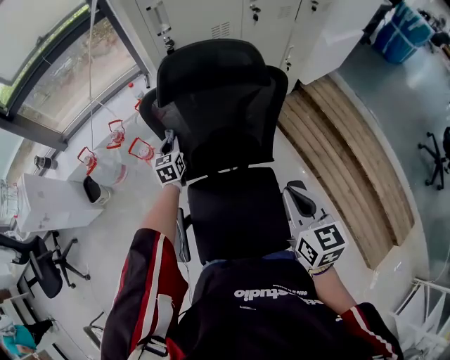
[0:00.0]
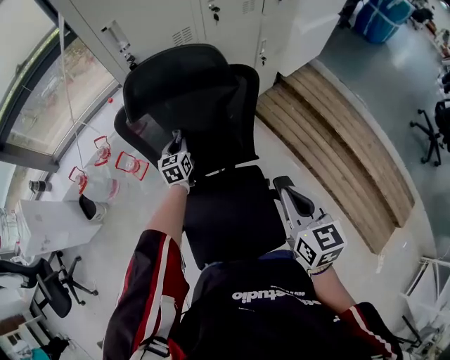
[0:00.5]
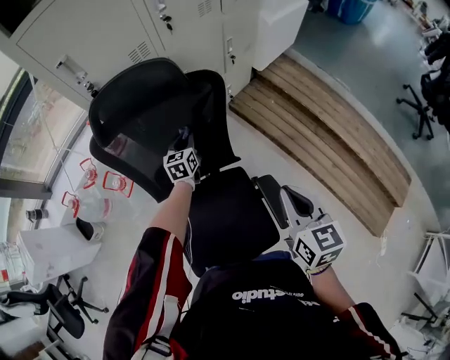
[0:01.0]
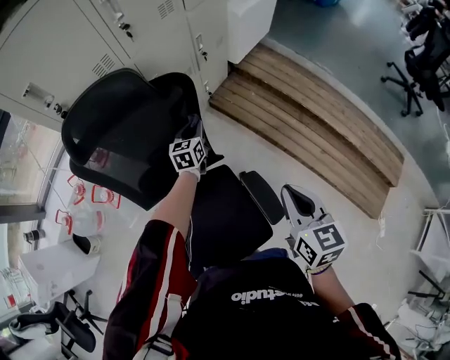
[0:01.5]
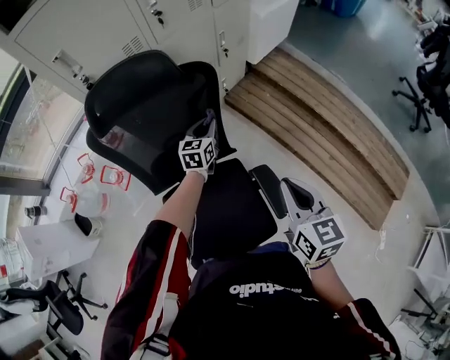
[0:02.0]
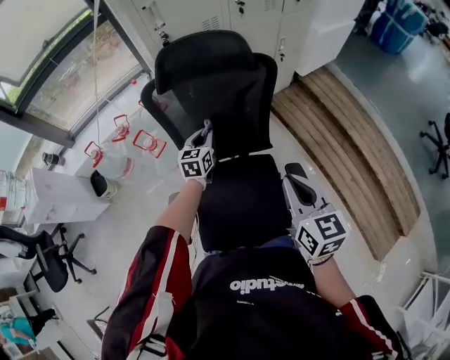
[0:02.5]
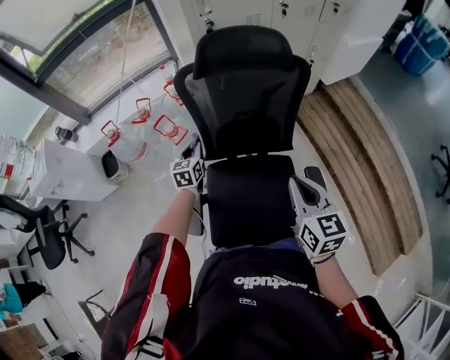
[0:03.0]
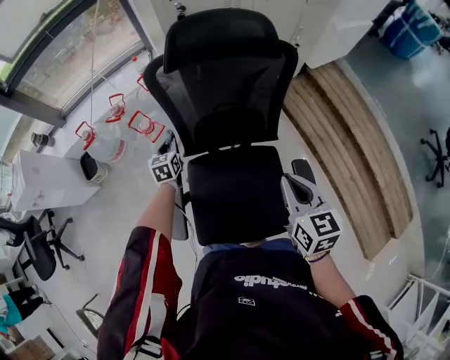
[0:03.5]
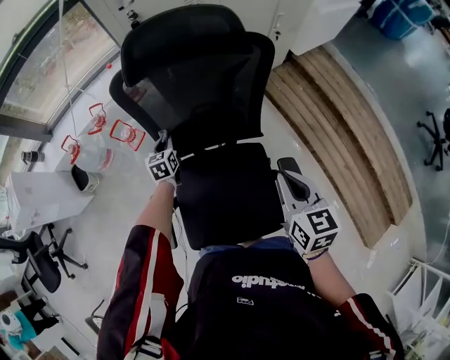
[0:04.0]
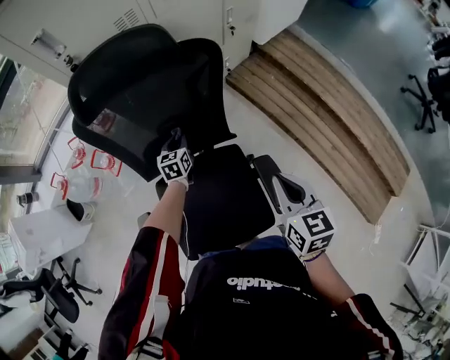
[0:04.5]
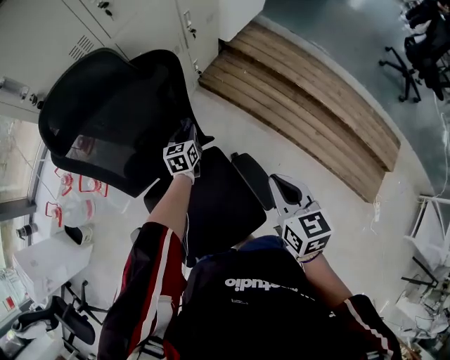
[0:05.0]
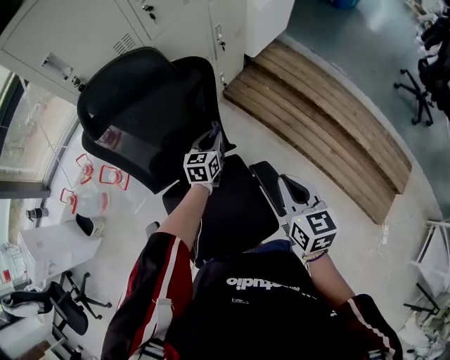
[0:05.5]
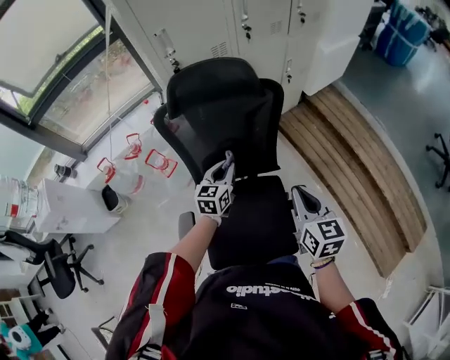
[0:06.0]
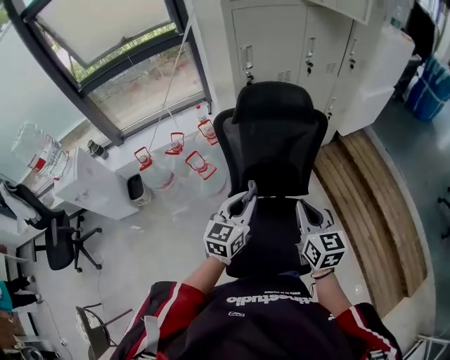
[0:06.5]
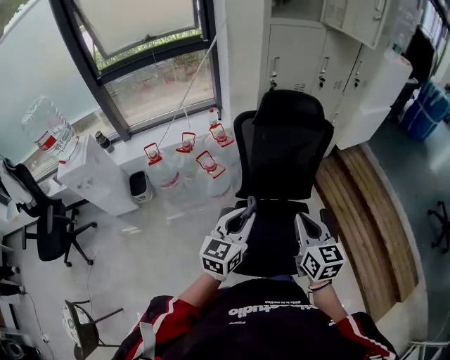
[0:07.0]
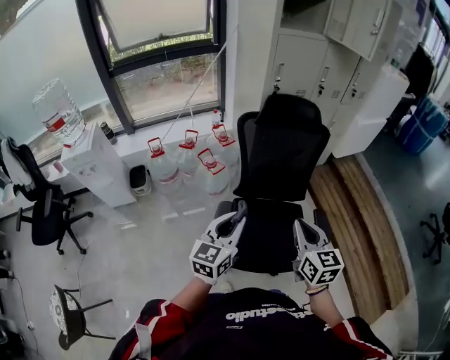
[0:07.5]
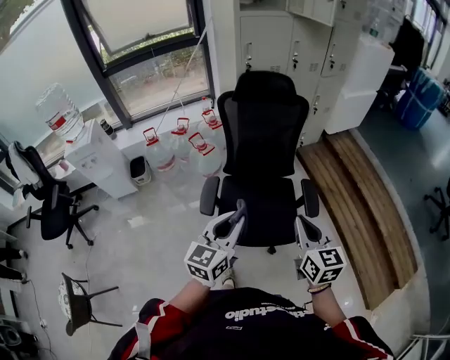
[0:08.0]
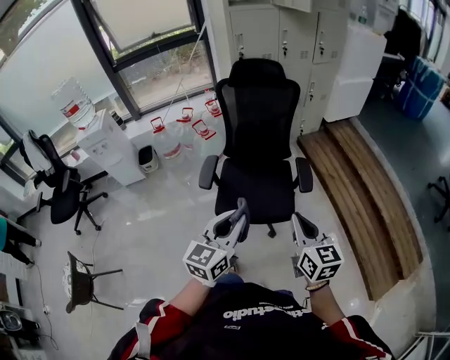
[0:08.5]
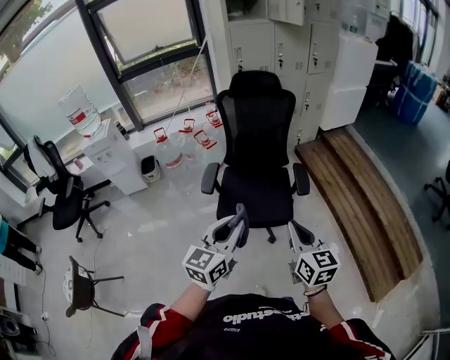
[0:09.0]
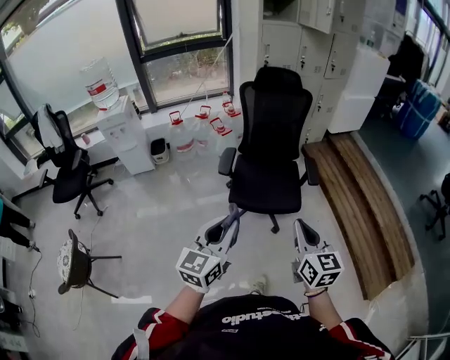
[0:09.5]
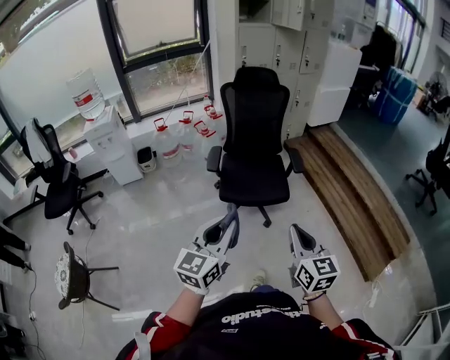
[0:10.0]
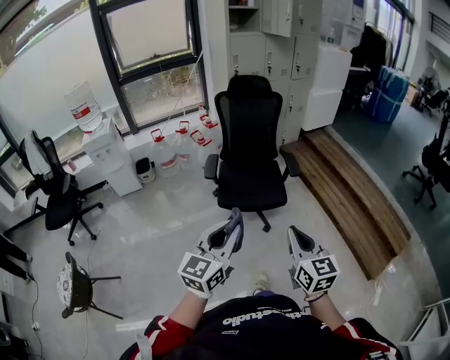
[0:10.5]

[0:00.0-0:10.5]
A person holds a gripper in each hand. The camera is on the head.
0:00.0 to 0:02.0: The right gripper moves some 15 cm. Meanwhile the left gripper moves about 40 cm, and rotates some 30 degrees.
0:02.0 to 0:04.0: The right gripper ends up about 15 cm from where it was; the left gripper moves some 40 cm, and swivels about 30 degrees.
0:04.0 to 0:06.5: The right gripper goes roughly 20 cm upward, to the left and backward, while the left gripper moves upward and backward, approximately 40 cm, travels to the right and back again, some 35 cm each way, and swivels some 30 degrees.
0:06.5 to 0:08.5: The two grippers travel together, backward, about 50 cm.
0:08.5 to 0:10.5: The two grippers go about 35 cm backward.

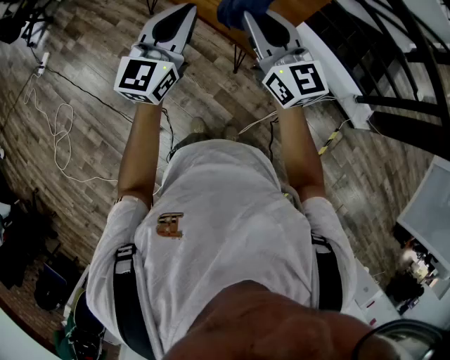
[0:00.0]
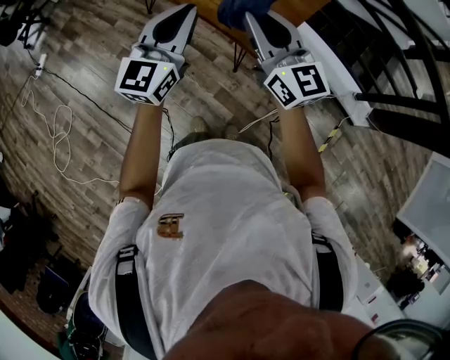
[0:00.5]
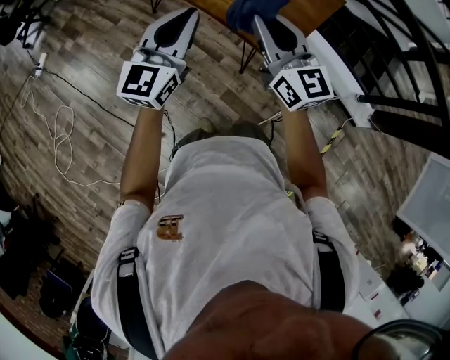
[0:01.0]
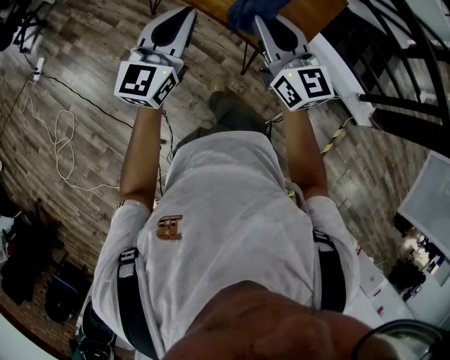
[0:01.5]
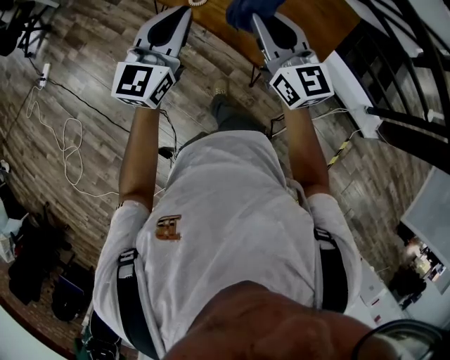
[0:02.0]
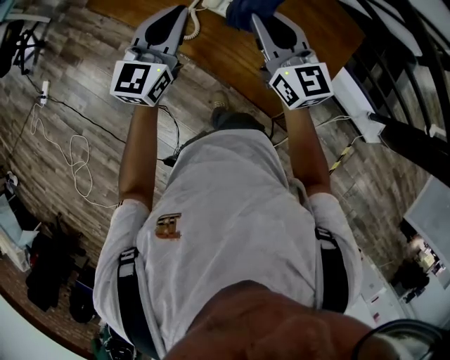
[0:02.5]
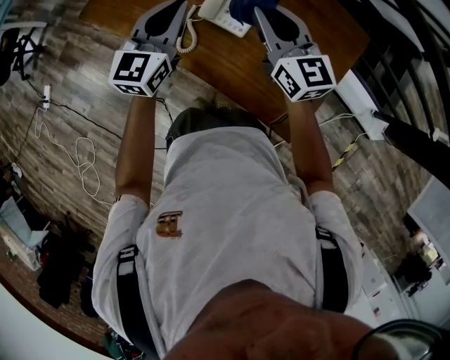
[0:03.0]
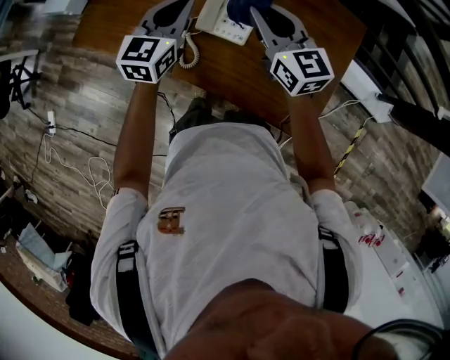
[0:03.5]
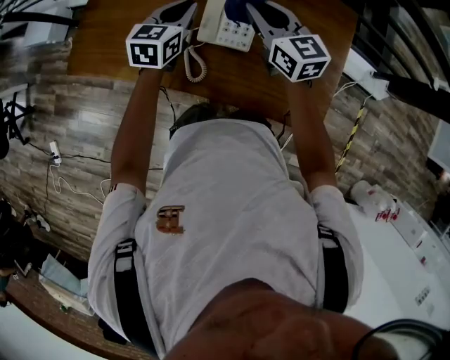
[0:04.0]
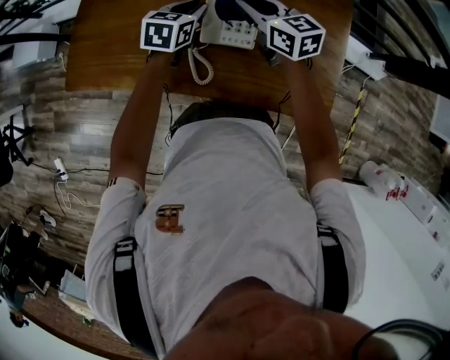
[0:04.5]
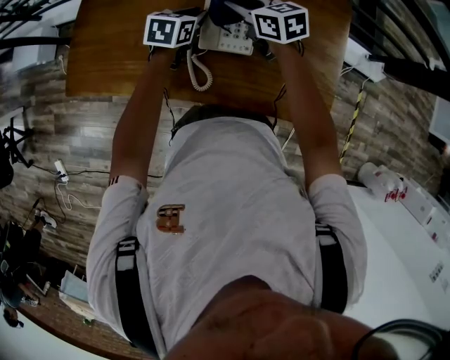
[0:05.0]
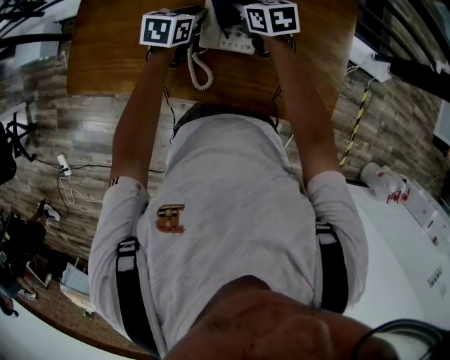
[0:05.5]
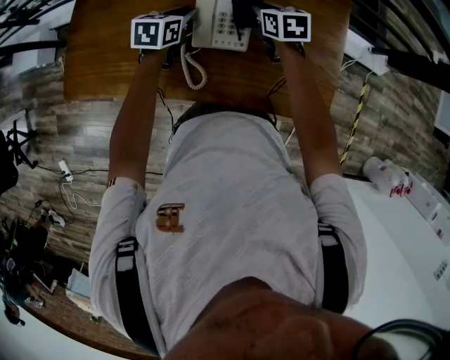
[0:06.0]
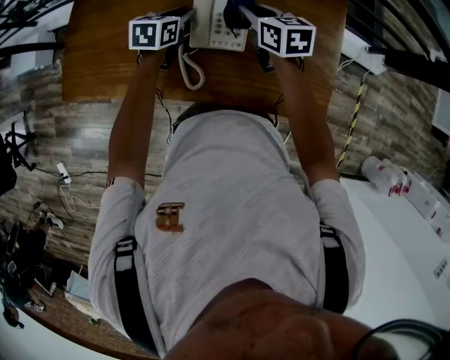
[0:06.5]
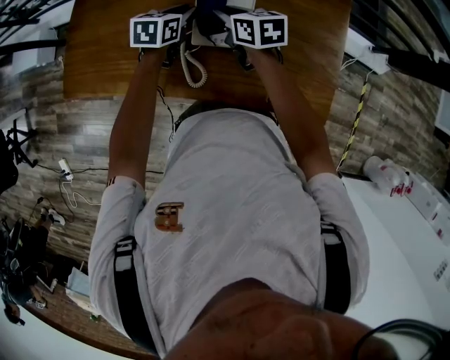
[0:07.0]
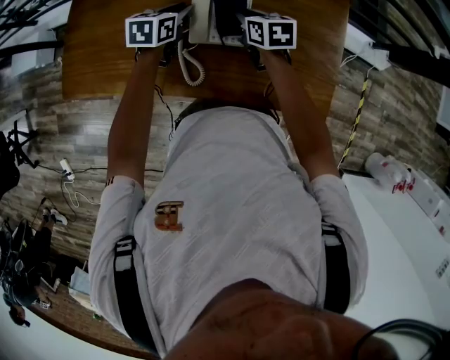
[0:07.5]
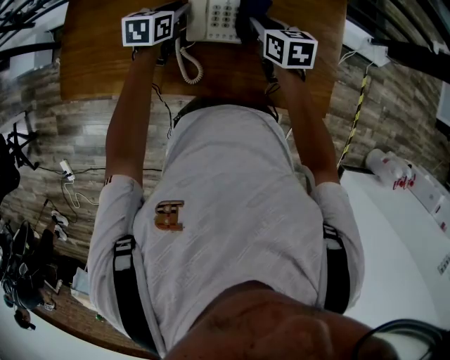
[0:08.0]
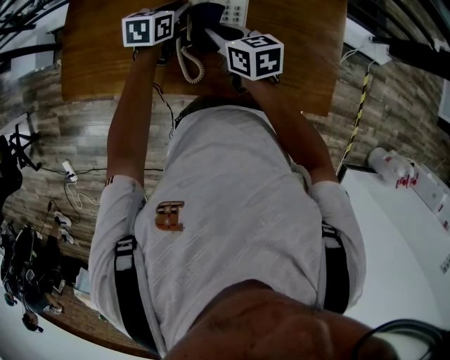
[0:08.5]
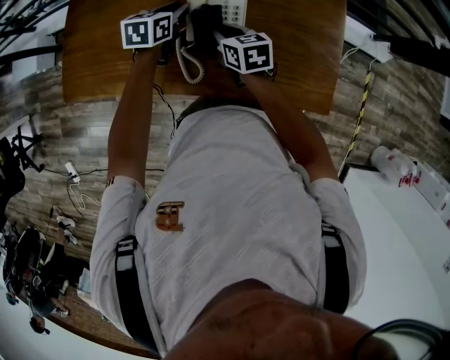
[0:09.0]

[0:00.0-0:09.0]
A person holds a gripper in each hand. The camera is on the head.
0:00.0 to 0:02.0: Both grippers travel together forward and to the left, approximately 25 cm.
0:02.0 to 0:04.5: The pair of grippers is taken some 50 cm. The left gripper tilts its fingers some 40 degrees downward. The right gripper rotates roughly 30 degrees.
0:04.5 to 0:07.0: The right gripper moves downward, approximately 10 cm, travels to the right and back again, about 10 cm each way, and changes its angle by approximately 20 degrees.
0:07.0 to 0:09.0: The right gripper travels backward by some 5 cm, and moves approximately 10 cm to the right and comes back.

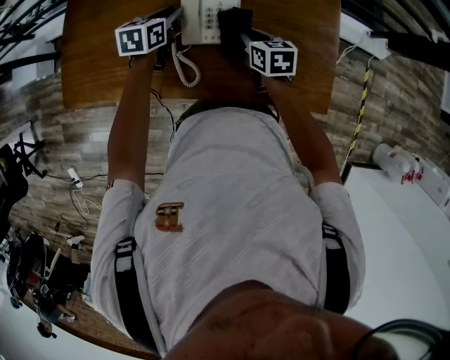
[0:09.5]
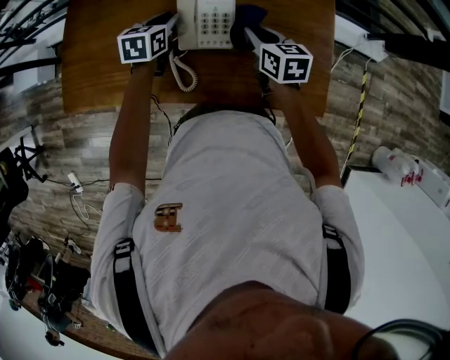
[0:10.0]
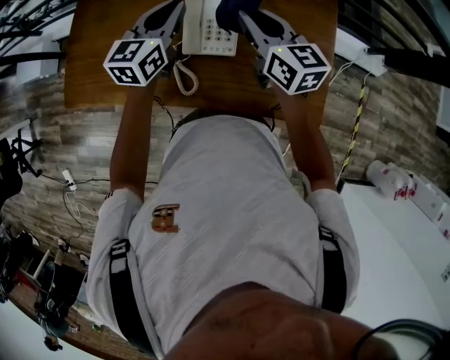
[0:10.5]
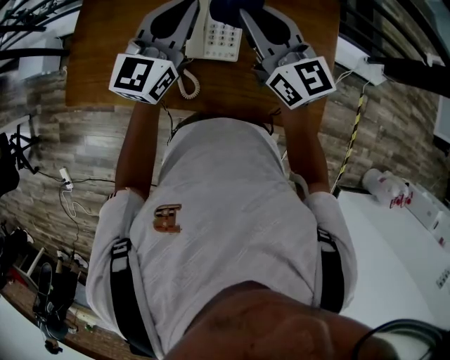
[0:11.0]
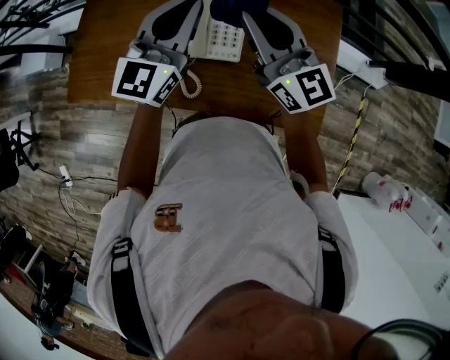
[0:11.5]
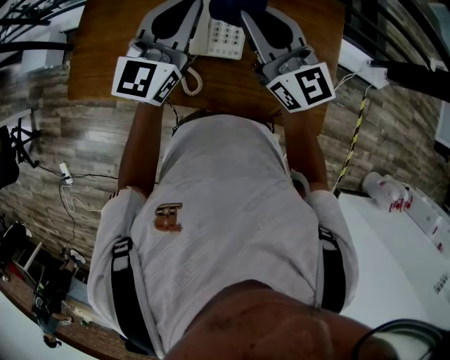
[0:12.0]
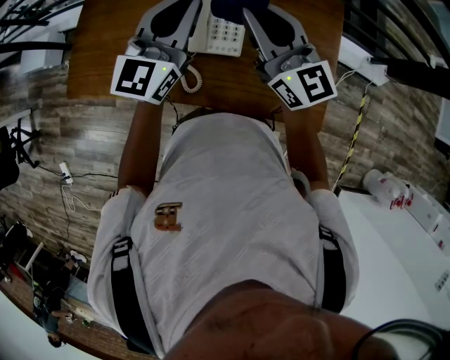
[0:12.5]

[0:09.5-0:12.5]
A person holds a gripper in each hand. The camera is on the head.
0:09.5 to 0:11.0: The two grippers go about 25 cm upward. The right gripper tips its fingers upward by approximately 50 degrees. The left gripper angles its fingers upward, by some 40 degrees.
0:11.0 to 0:12.5: The grippers move only a little.

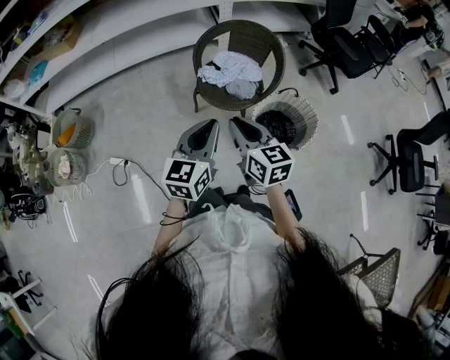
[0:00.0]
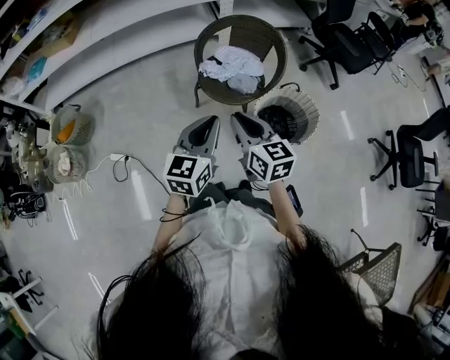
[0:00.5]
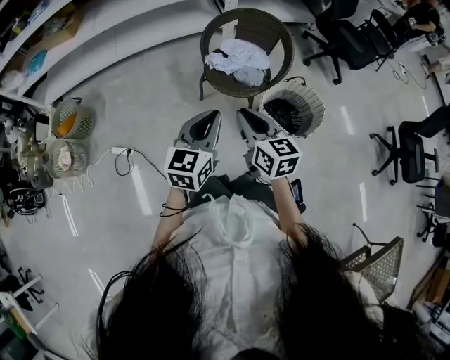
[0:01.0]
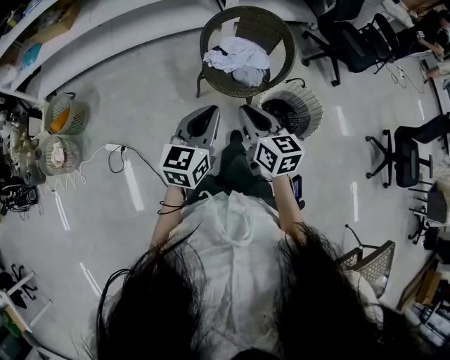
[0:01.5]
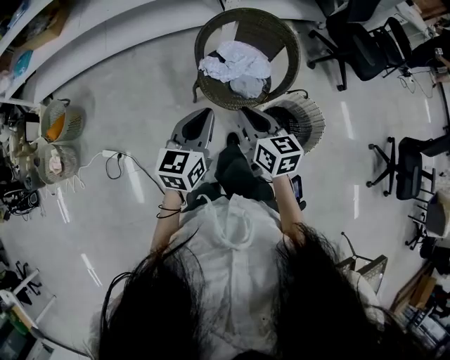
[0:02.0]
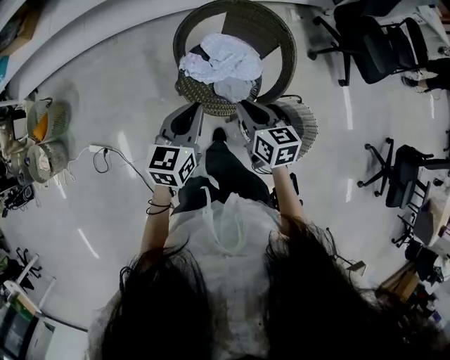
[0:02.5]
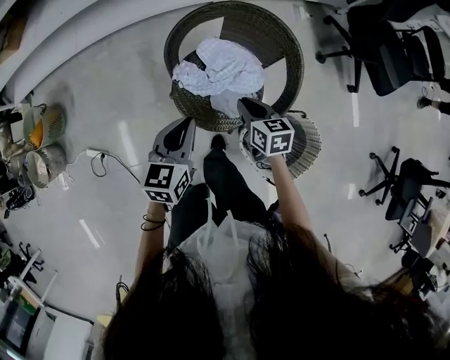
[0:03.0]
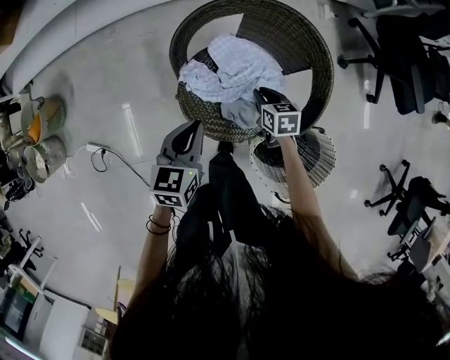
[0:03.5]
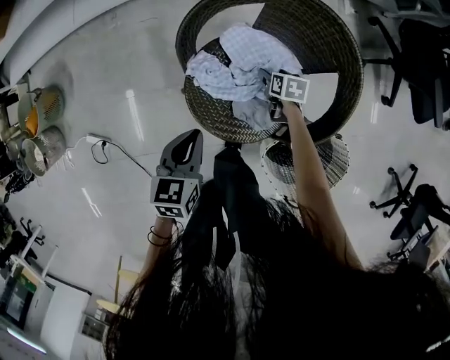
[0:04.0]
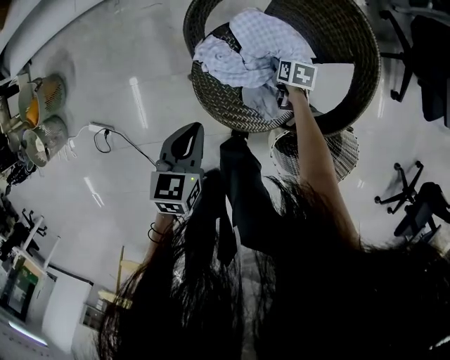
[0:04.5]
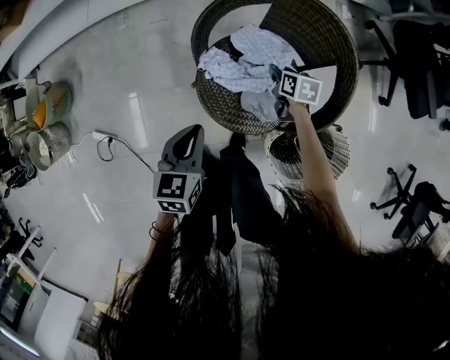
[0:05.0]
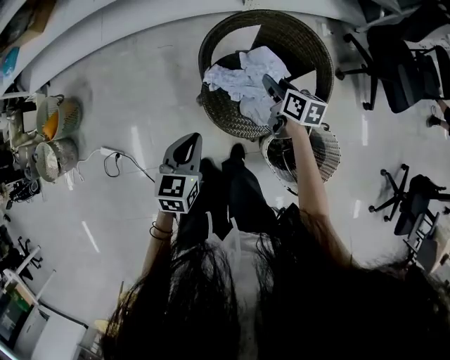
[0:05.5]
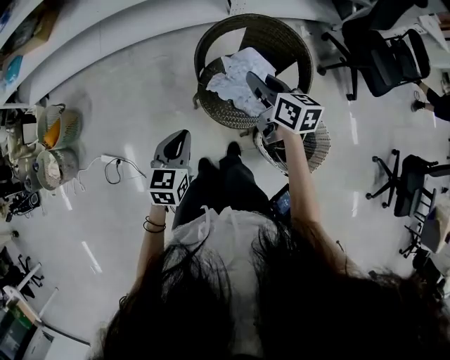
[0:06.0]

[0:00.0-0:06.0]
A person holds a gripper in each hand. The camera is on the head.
0:00.0 to 0:02.0: Both grippers move forward and downward, about 15 cm.
0:02.0 to 0:04.0: The left gripper travels downward and forward by about 35 cm, and rotates about 30 degrees, while the right gripper shifts about 60 cm downward and forward, tilts its fingers some 40 degrees downward, and opens.
0:04.0 to 0:06.0: The right gripper is displaced upward by approximately 50 cm, angles its fingers upward, by about 40 degrees, and closes. Meanwhile the left gripper heads upward, backward and to the left, covering about 25 cm.
